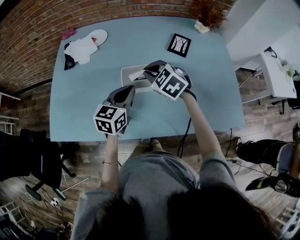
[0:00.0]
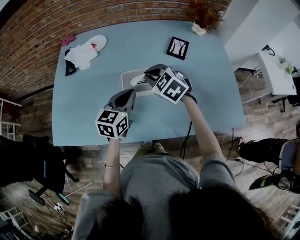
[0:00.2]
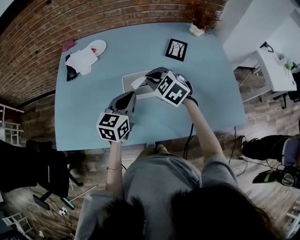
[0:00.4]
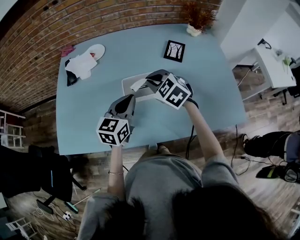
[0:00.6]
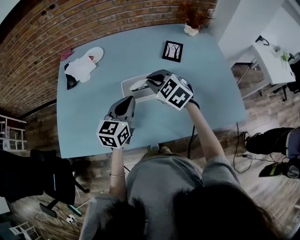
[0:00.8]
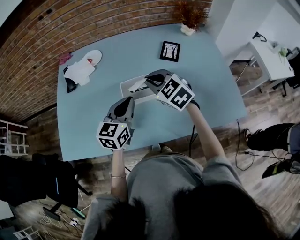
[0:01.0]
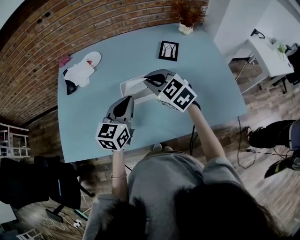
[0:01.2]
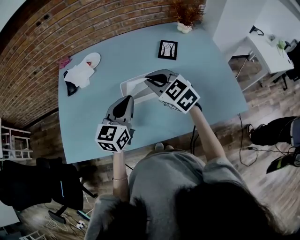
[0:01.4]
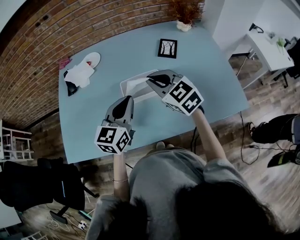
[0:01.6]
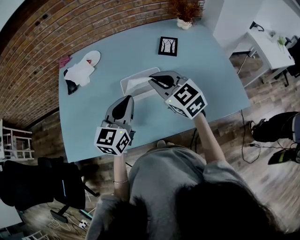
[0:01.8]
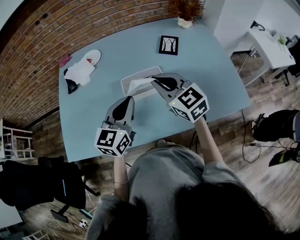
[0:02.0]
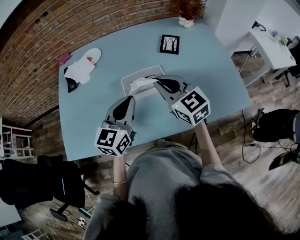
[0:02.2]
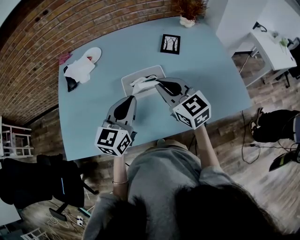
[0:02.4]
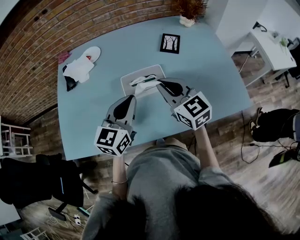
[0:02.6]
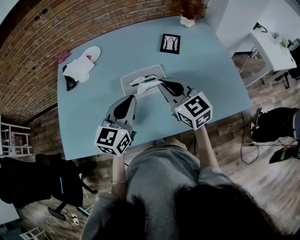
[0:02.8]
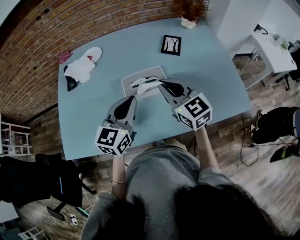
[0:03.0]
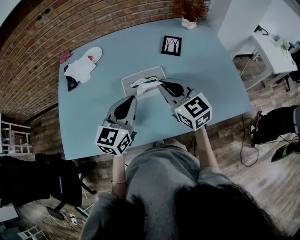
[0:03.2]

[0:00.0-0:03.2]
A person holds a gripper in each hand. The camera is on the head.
0:00.0 to 0:01.6: The left gripper moves upward, approximately 10 cm. Meanwhile the right gripper shifts roughly 10 cm upward and backward, and swivels some 30 degrees.
0:01.6 to 0:03.2: The grippers make only small movements.

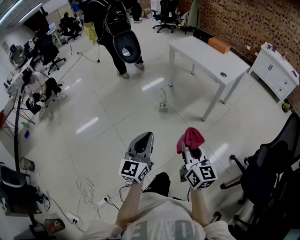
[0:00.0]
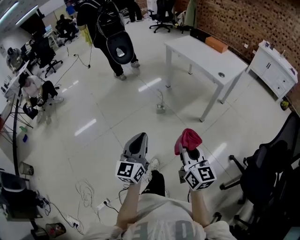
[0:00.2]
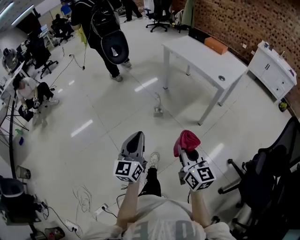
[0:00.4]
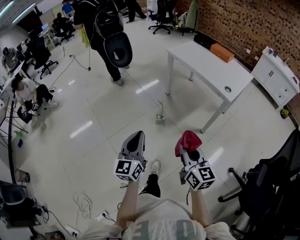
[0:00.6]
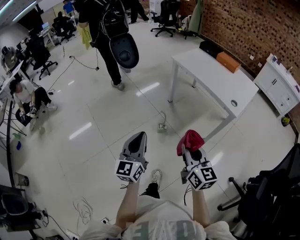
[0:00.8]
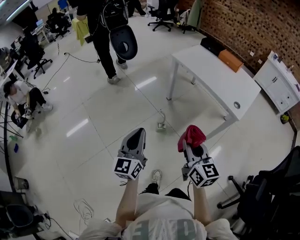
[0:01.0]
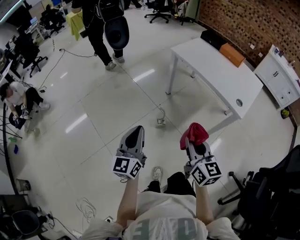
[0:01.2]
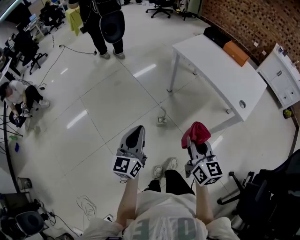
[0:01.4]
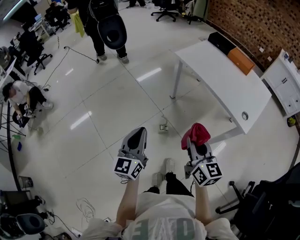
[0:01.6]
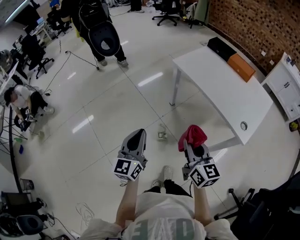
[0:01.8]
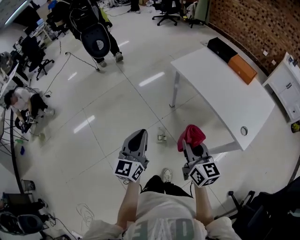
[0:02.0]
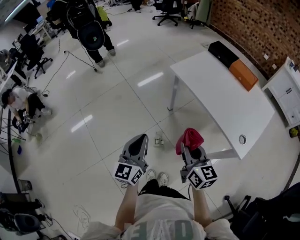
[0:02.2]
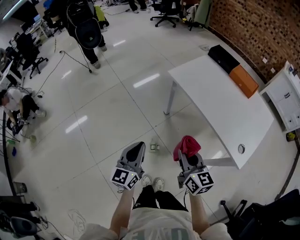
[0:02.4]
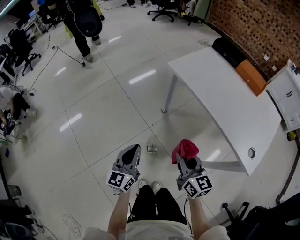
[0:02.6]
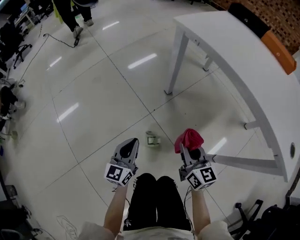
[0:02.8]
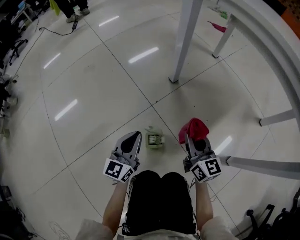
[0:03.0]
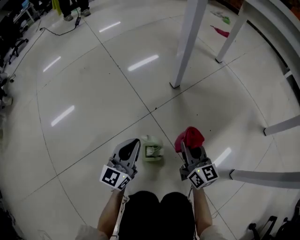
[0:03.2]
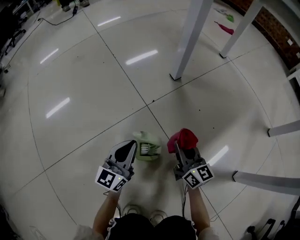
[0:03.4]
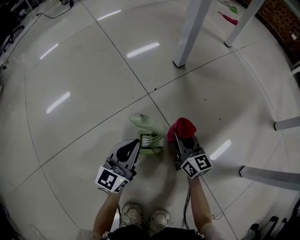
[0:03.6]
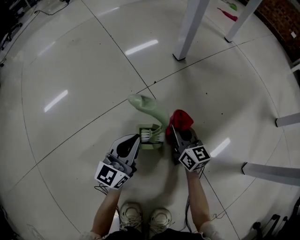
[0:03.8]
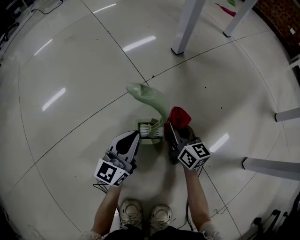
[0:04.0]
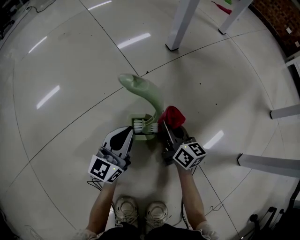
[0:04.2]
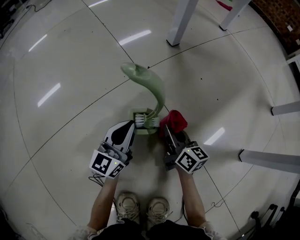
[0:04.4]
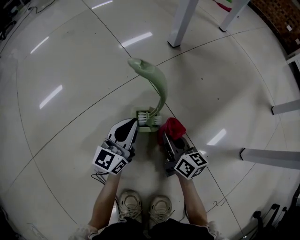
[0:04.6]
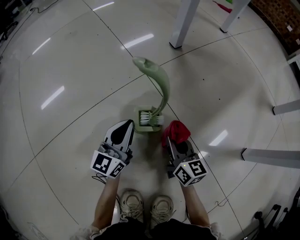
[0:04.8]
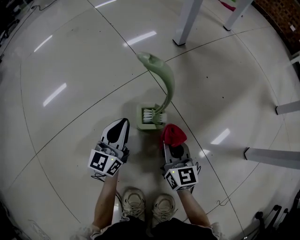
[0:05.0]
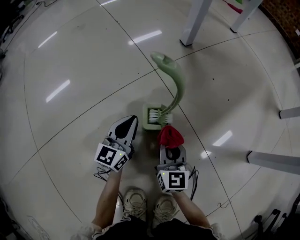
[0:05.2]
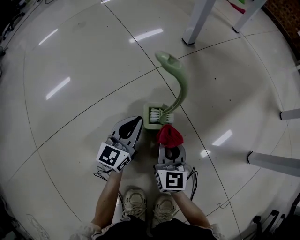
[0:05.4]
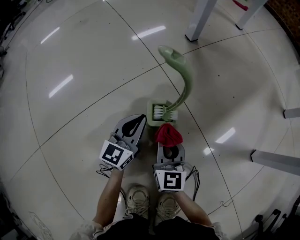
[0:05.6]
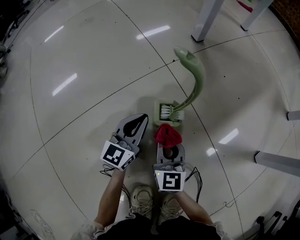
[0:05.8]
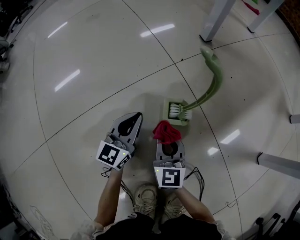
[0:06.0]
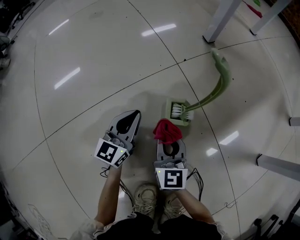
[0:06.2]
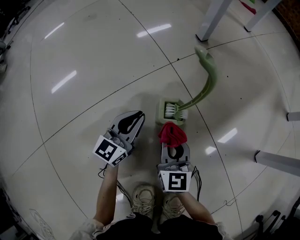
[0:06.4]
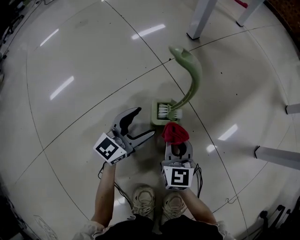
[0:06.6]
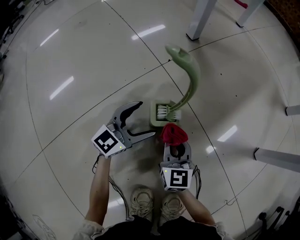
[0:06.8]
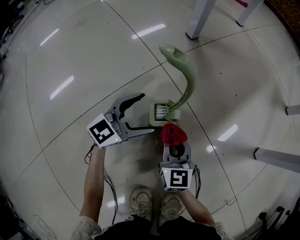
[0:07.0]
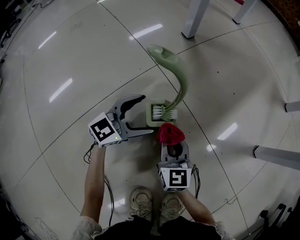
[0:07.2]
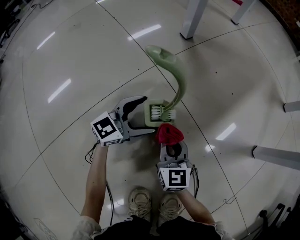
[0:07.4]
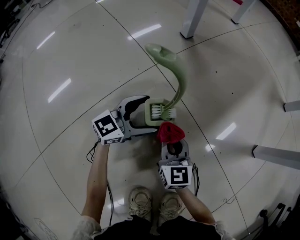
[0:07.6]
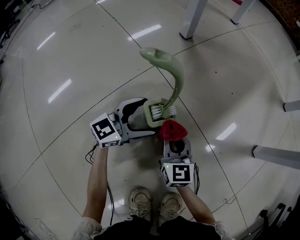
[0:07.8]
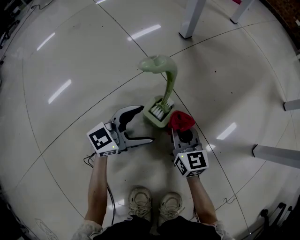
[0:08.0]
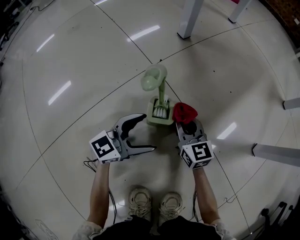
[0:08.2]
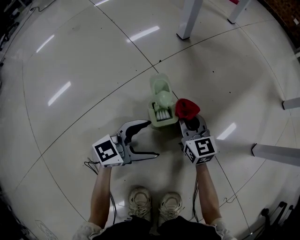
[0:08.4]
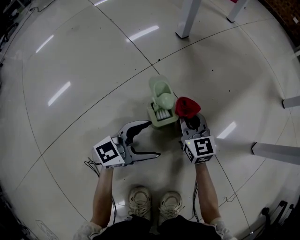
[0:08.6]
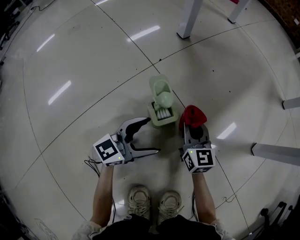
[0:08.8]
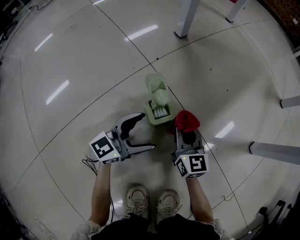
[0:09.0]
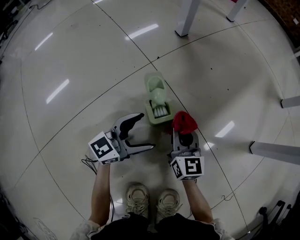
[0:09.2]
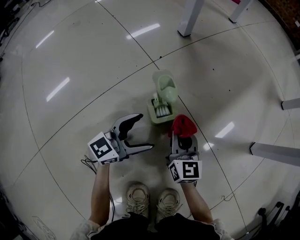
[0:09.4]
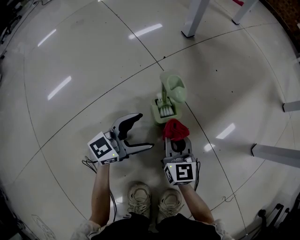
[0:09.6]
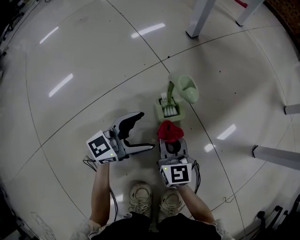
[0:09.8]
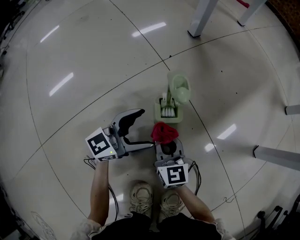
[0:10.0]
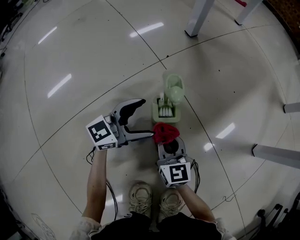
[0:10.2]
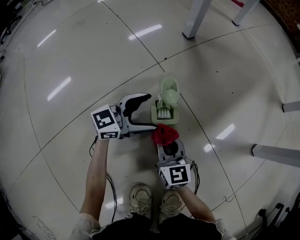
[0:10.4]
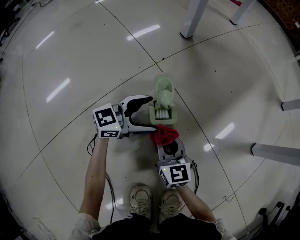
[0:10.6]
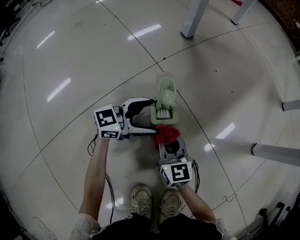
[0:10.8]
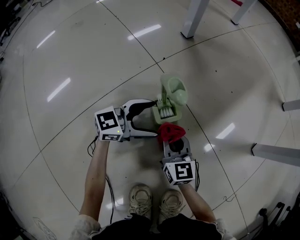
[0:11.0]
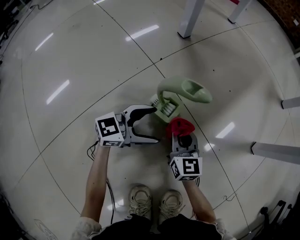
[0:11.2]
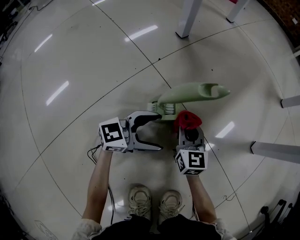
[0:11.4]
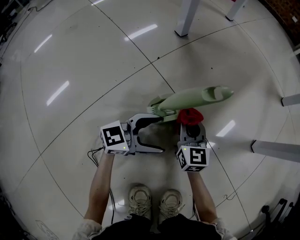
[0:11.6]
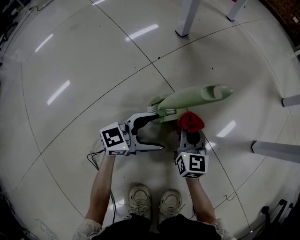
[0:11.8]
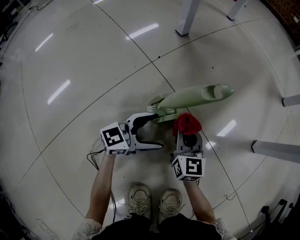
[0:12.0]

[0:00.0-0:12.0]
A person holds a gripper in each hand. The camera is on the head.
0:00.0 to 0:01.6: The two grippers travel together, forward, roughly 50 cm.
0:01.6 to 0:03.0: Both grippers move downward and forward, about 70 cm.
0:03.0 to 0:04.4: Both grippers move downward, about 25 cm. The right gripper swivels approximately 20 degrees.
0:04.4 to 0:06.0: The right gripper travels to the left and backward by about 15 cm, and rotates some 40 degrees. The left gripper goes approximately 10 cm to the left.
0:06.0 to 0:07.6: The right gripper shifts some 5 cm to the right. Meanwhile the left gripper shifts some 10 cm to the right and forward, rotates roughly 40 degrees, and opens its fingers.
0:07.6 to 0:09.0: The left gripper goes some 5 cm backward, while the right gripper changes place by about 5 cm.
0:09.0 to 0:10.4: The right gripper shifts about 10 cm backward and to the left. Meanwhile the left gripper ends up approximately 5 cm from where it was.
0:10.4 to 0:12.0: The left gripper goes roughly 5 cm to the right, while the right gripper goes some 10 cm forward and to the right.

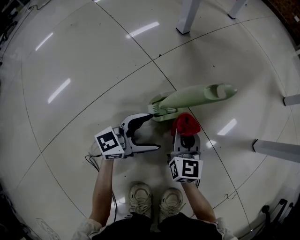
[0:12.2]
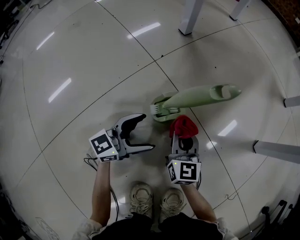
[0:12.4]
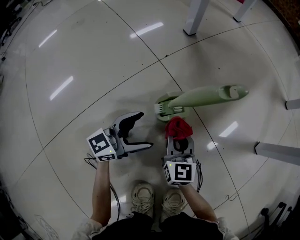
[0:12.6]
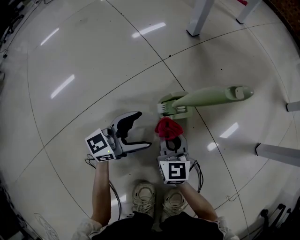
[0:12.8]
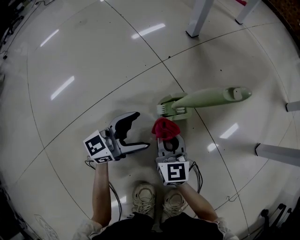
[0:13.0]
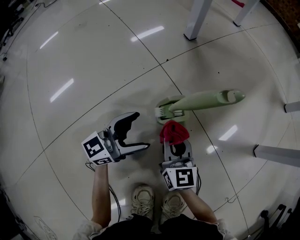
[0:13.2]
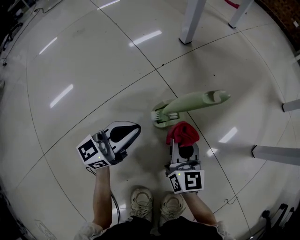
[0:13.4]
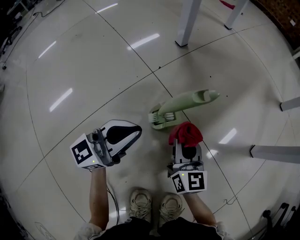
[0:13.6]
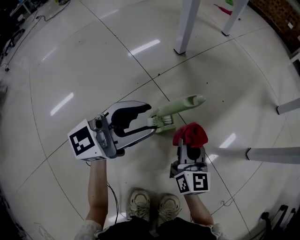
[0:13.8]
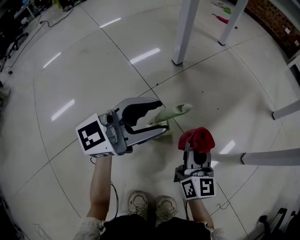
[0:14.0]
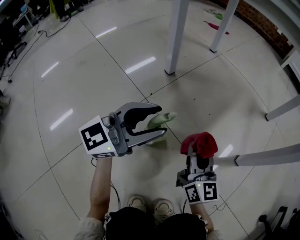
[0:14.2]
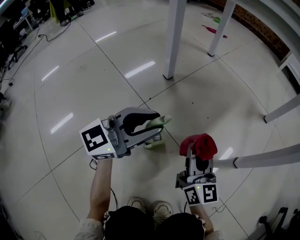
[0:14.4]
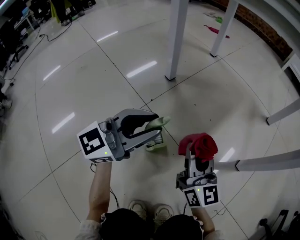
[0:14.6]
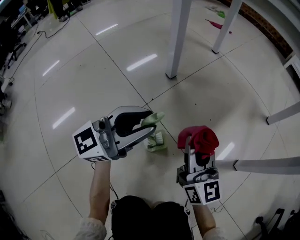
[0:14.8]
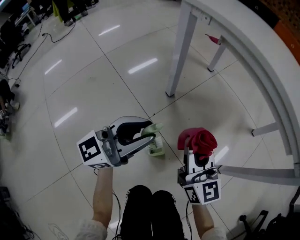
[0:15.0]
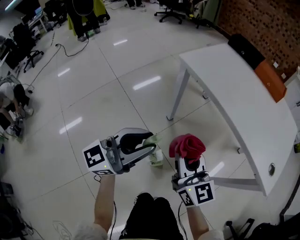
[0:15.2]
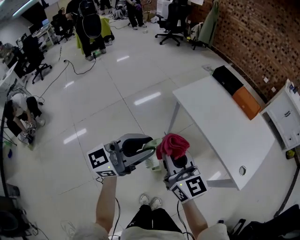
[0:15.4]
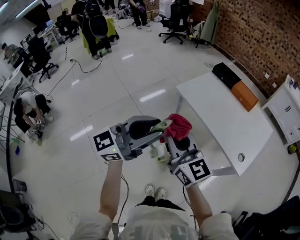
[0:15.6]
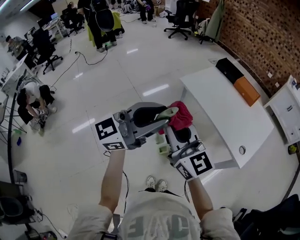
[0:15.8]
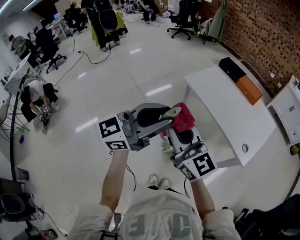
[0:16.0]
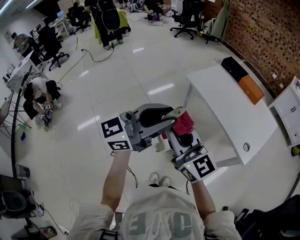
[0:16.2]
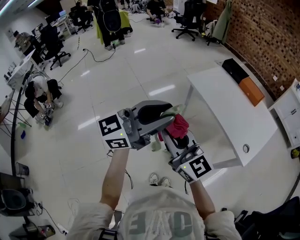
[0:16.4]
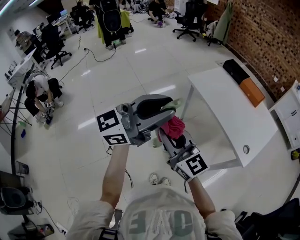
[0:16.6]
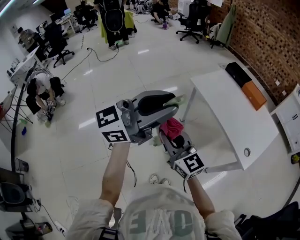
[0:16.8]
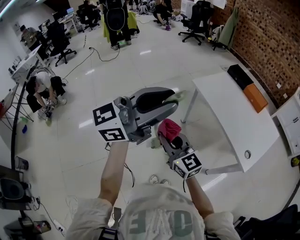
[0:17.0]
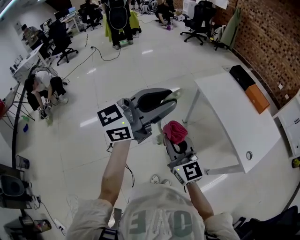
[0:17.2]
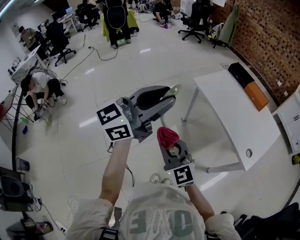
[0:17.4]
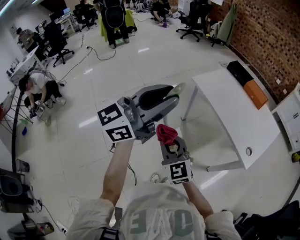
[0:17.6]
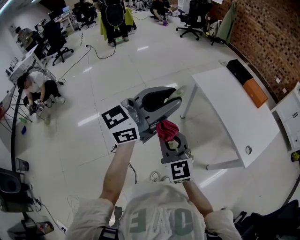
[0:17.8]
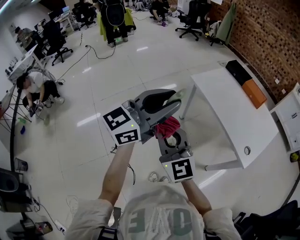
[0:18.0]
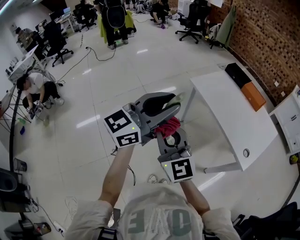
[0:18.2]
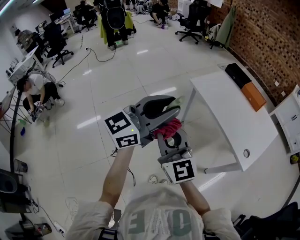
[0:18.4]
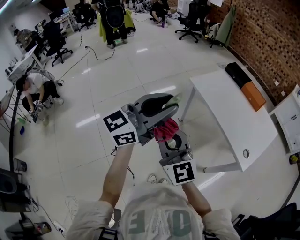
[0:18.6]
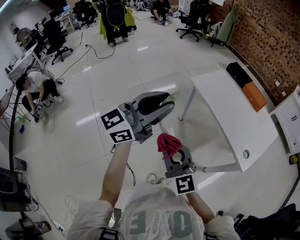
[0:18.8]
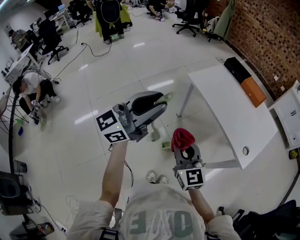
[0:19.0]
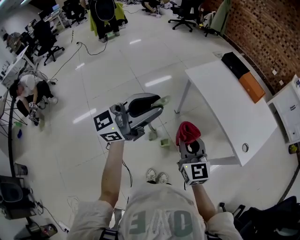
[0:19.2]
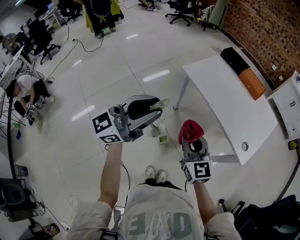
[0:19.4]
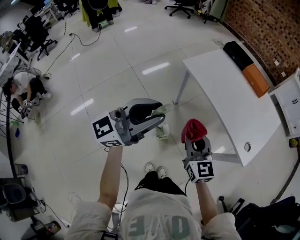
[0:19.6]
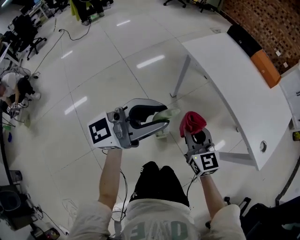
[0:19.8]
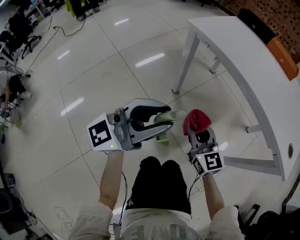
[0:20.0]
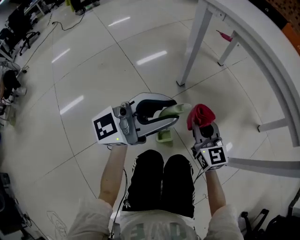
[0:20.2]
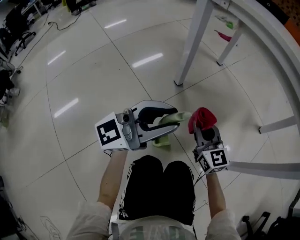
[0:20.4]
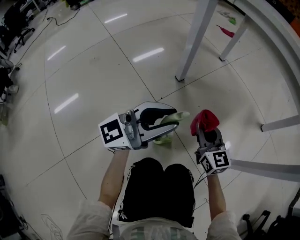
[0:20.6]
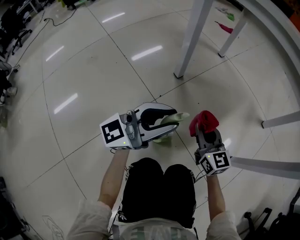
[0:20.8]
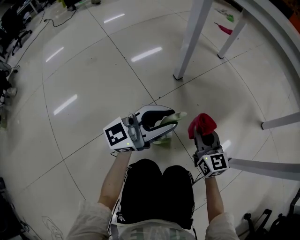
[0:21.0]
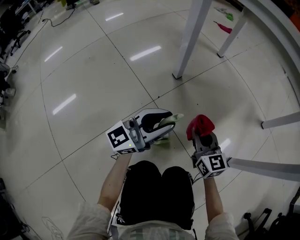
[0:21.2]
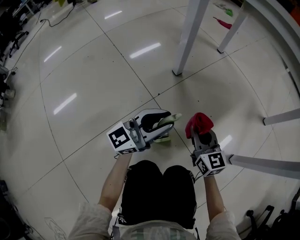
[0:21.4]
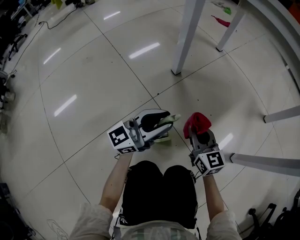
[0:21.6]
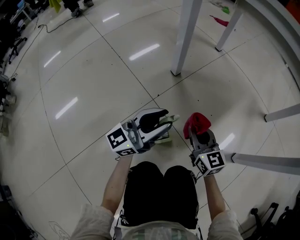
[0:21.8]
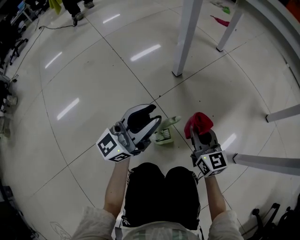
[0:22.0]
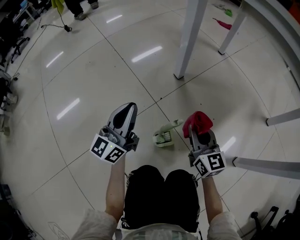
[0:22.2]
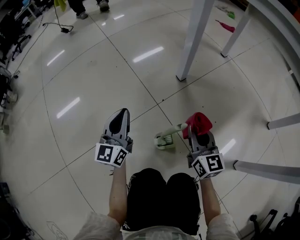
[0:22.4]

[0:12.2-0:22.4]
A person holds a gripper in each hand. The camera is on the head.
0:12.2 to 0:13.6: The left gripper is displaced upward by about 15 cm, and closes; the right gripper heads upward, covering roughly 5 cm, and goes to the left and returns, some 10 cm each way.
0:13.6 to 0:15.2: Both grippers move upward, roughly 60 cm.
0:15.2 to 0:16.6: The grippers both shift upward and backward by roughly 40 cm. The right gripper turns by roughly 30 degrees.
0:16.6 to 0:18.0: The right gripper moves some 10 cm downward and comes back.
0:18.0 to 0:19.4: The left gripper moves downward, some 5 cm. The right gripper is displaced to the right, downward and forward by about 20 cm, and changes its angle by approximately 30 degrees.
0:19.4 to 0:21.0: Both grippers move downward, about 70 cm.
0:21.0 to 0:22.4: The left gripper swings up and down, about 10 cm each way, with 2 reversals, and turns by about 60 degrees.
